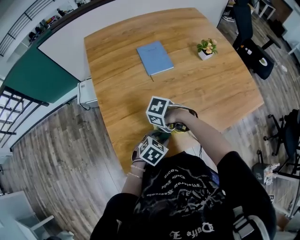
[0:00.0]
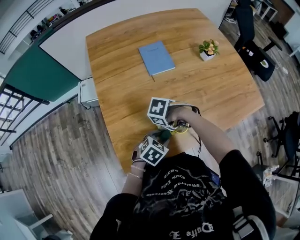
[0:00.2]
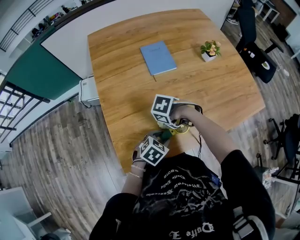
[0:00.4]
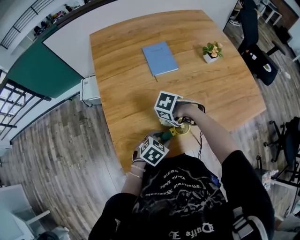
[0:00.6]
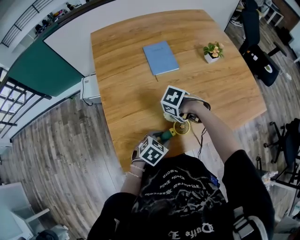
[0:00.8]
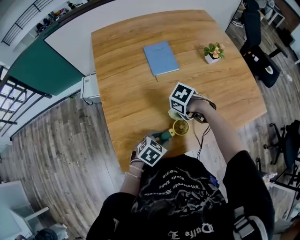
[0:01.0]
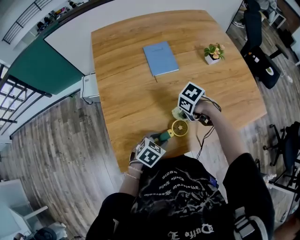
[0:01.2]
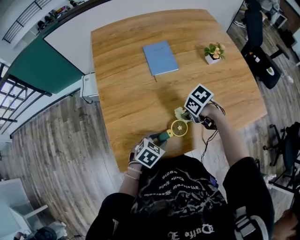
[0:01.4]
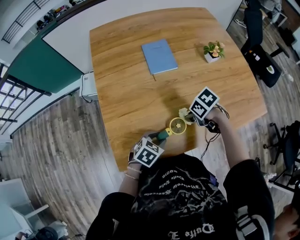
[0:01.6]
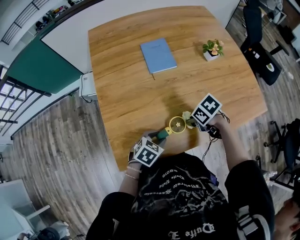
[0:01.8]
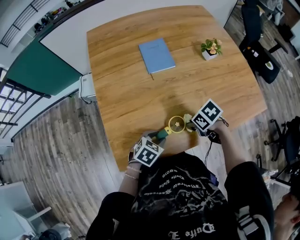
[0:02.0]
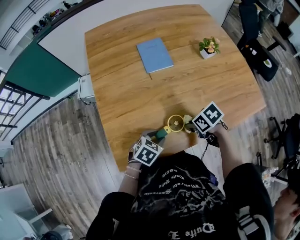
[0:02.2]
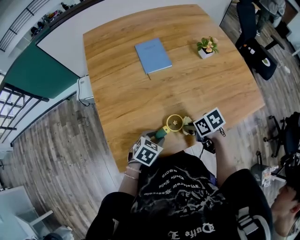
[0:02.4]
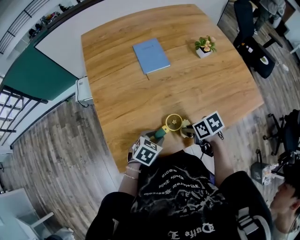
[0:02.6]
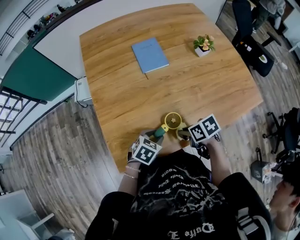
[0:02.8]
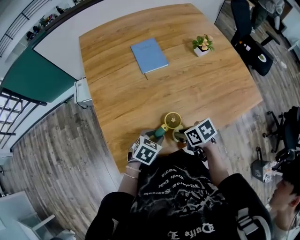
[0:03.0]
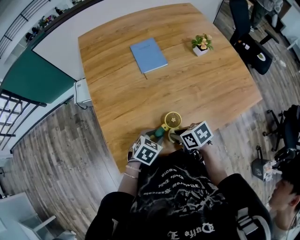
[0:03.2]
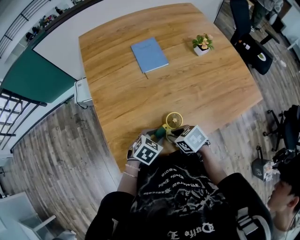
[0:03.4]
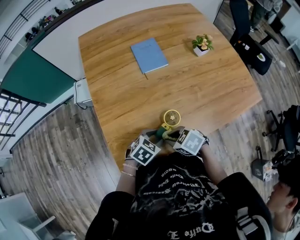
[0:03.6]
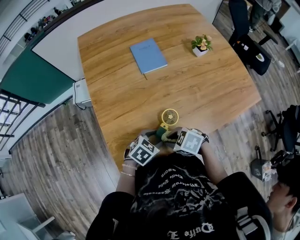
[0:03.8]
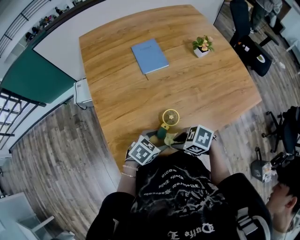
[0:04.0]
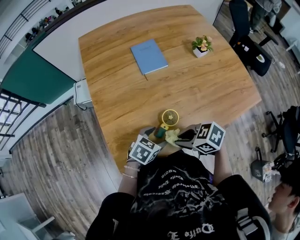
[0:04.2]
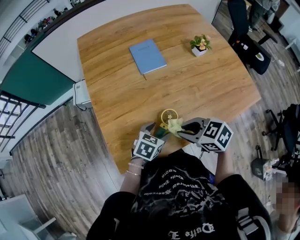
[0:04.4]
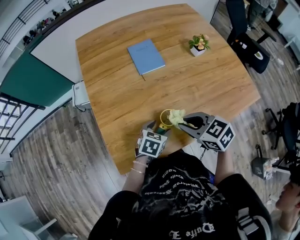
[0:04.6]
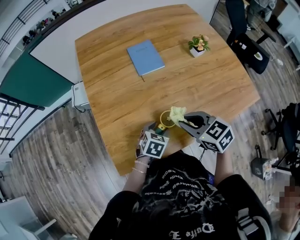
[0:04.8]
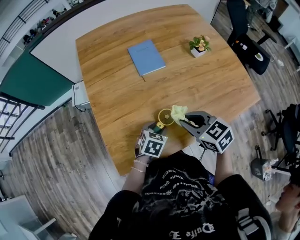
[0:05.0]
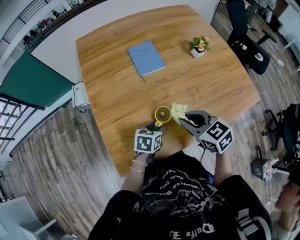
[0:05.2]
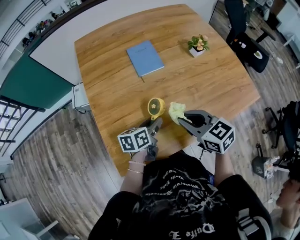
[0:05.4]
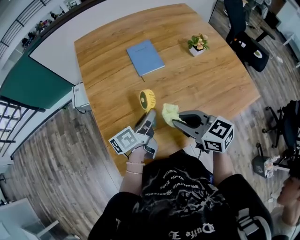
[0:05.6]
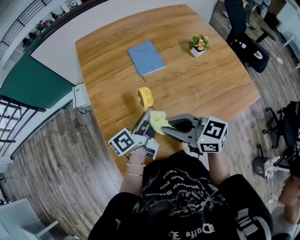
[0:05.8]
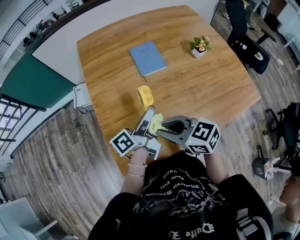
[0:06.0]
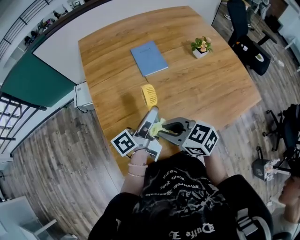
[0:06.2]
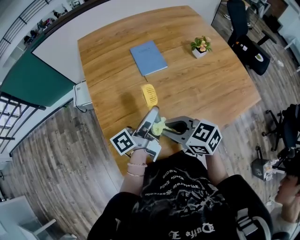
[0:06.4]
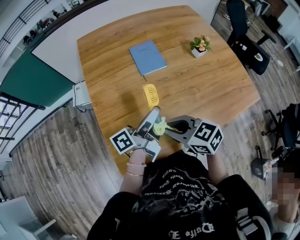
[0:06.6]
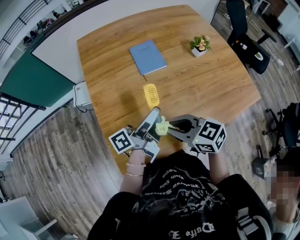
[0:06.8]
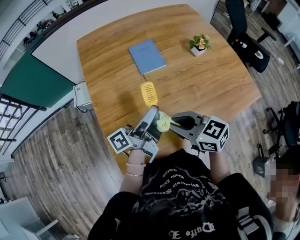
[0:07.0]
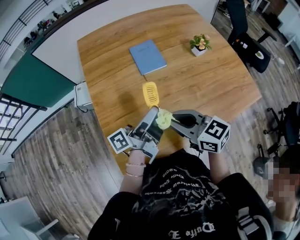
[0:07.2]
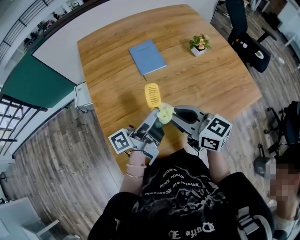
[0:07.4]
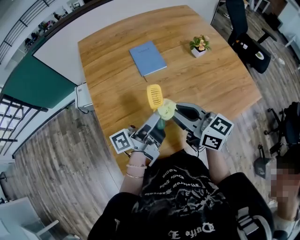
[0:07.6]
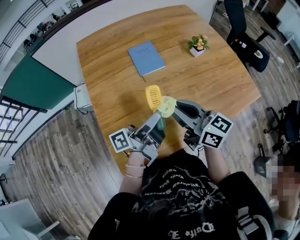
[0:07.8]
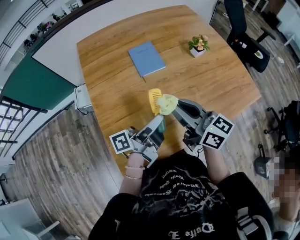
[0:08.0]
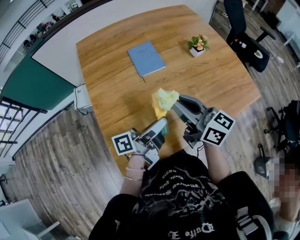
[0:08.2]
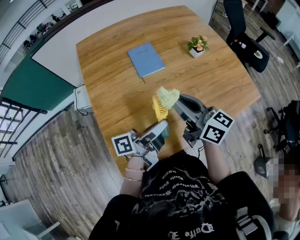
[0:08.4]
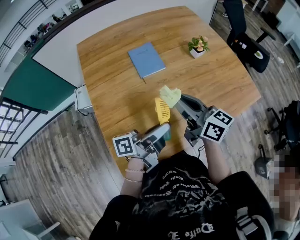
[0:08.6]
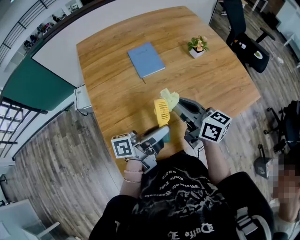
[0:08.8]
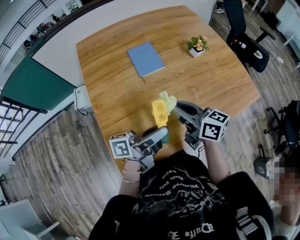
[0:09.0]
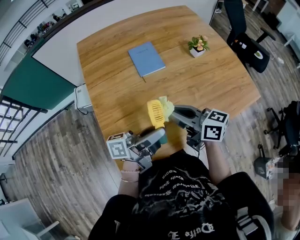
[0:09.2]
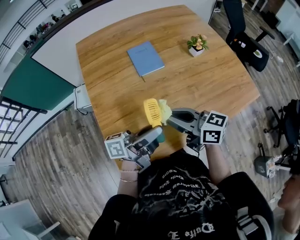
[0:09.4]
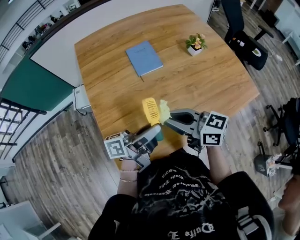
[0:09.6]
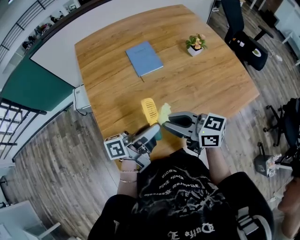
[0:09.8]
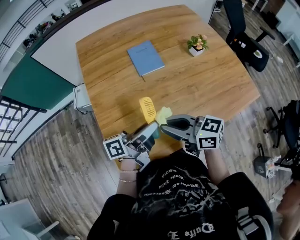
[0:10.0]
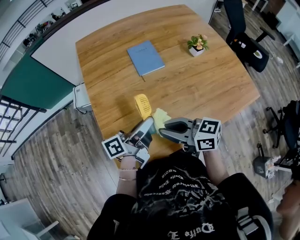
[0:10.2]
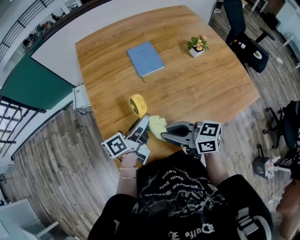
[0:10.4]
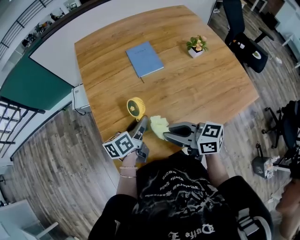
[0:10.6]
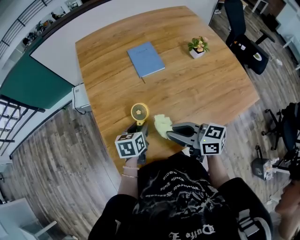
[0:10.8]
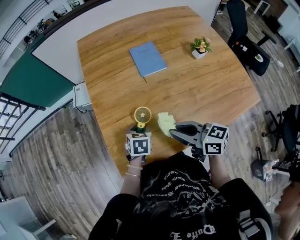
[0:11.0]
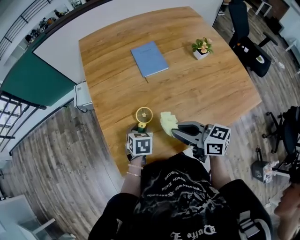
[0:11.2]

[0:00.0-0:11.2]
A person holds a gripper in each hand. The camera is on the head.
0.0 to 1.6 s: The right gripper moves some 15 cm, and rotates some 20 degrees.
1.6 to 3.2 s: The right gripper shifts by roughly 10 cm, and rotates some 20 degrees.
3.2 to 4.8 s: The right gripper travels upward by some 10 cm, and changes its angle by some 30 degrees, while the left gripper shifts by roughly 5 cm.
4.8 to 6.4 s: The right gripper moves to the left, some 10 cm. The left gripper is displaced upward by about 20 cm, and tips its fingers upward by approximately 60 degrees.
6.4 to 8.0 s: The right gripper travels upward, to the right and forward by some 10 cm, and tips its fingers upward by about 30 degrees.
8.0 to 9.6 s: The right gripper ends up about 5 cm from where it was, and turns by some 20 degrees.
9.6 to 11.2 s: The left gripper shifts about 20 cm downward, and tilts its fingers roughly 70 degrees downward.

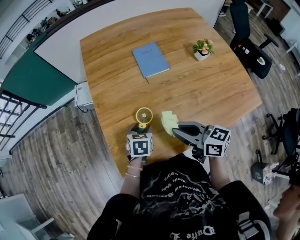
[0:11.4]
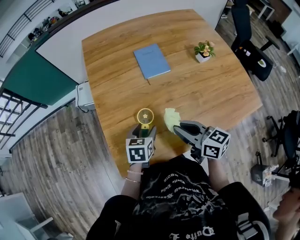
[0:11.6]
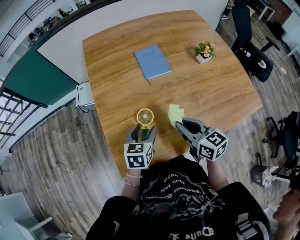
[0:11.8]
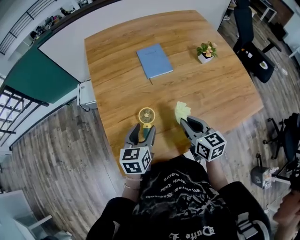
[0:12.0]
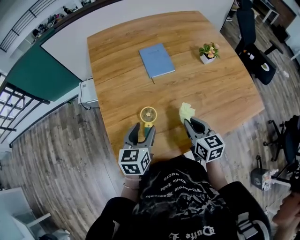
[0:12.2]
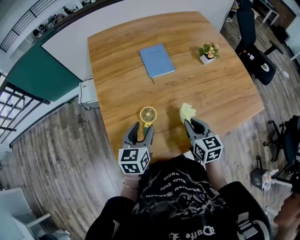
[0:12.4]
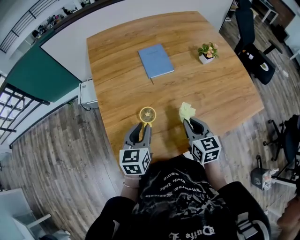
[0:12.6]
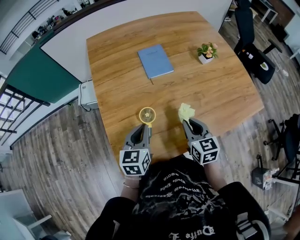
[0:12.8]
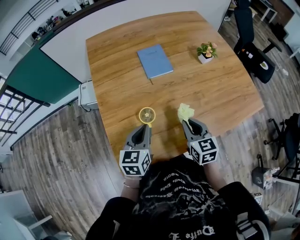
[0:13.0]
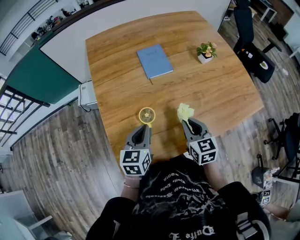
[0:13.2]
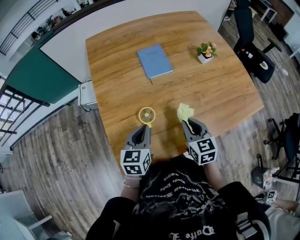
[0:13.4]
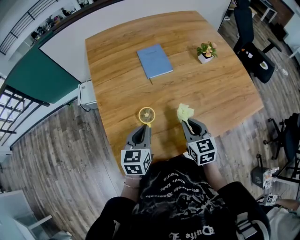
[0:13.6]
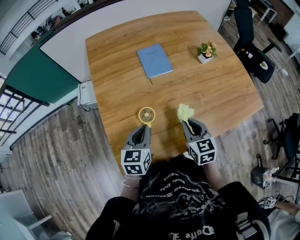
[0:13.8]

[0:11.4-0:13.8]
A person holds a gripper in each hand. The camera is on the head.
11.4 to 12.6 s: The left gripper shifts some 10 cm upward, swivels about 30 degrees, and closes its fingers. Meanwhile the right gripper travels to the right and downward by approximately 10 cm, and turns by approximately 40 degrees.
12.6 to 13.8 s: There are only small adjustments of the grippers.

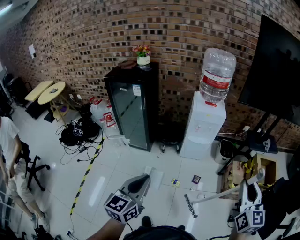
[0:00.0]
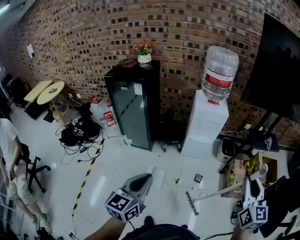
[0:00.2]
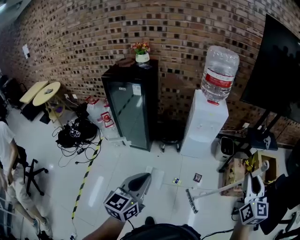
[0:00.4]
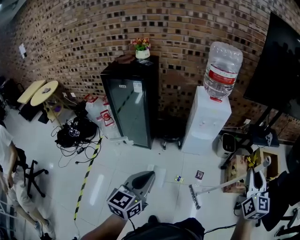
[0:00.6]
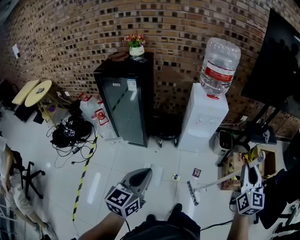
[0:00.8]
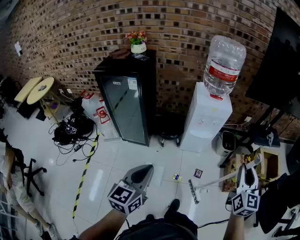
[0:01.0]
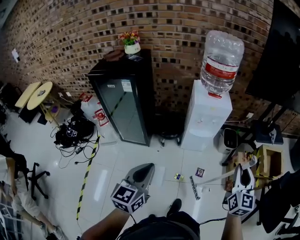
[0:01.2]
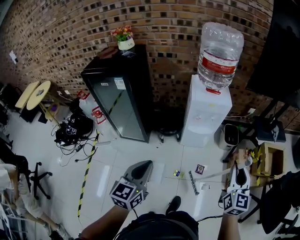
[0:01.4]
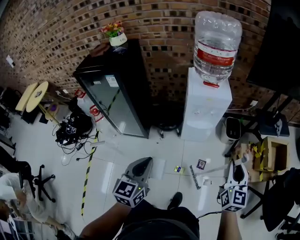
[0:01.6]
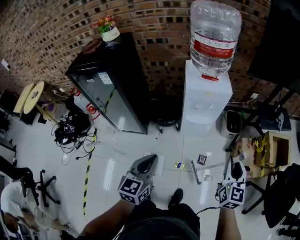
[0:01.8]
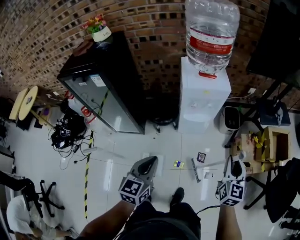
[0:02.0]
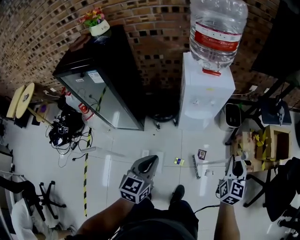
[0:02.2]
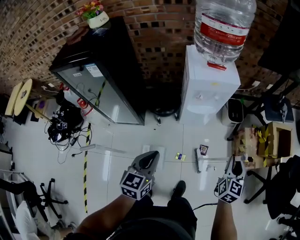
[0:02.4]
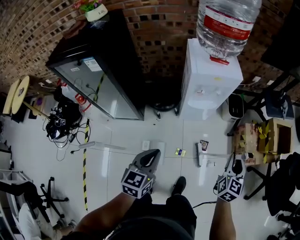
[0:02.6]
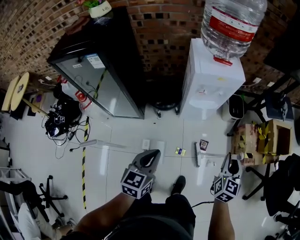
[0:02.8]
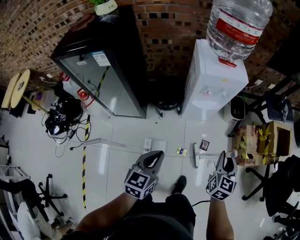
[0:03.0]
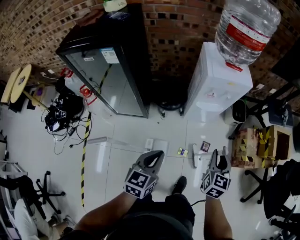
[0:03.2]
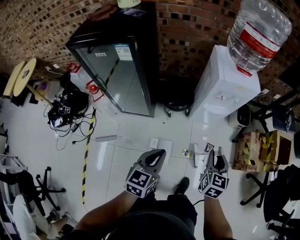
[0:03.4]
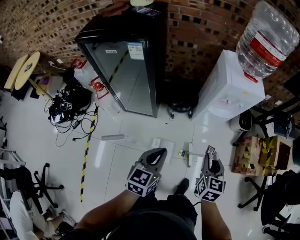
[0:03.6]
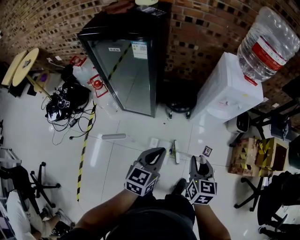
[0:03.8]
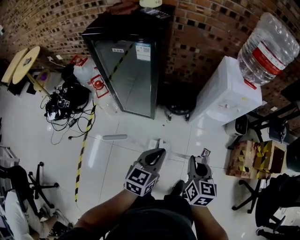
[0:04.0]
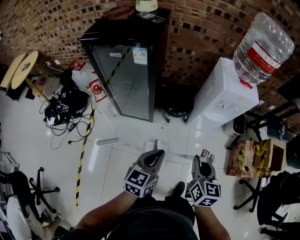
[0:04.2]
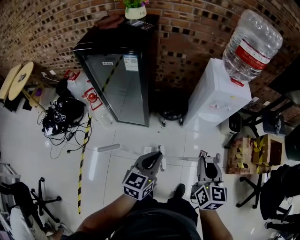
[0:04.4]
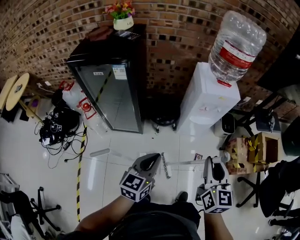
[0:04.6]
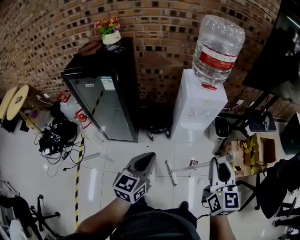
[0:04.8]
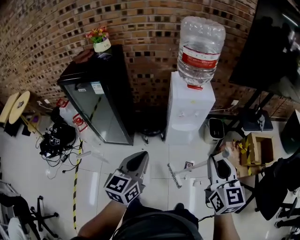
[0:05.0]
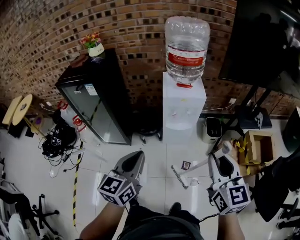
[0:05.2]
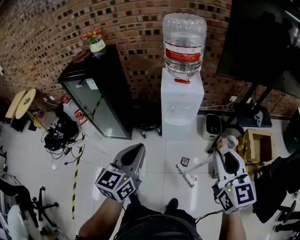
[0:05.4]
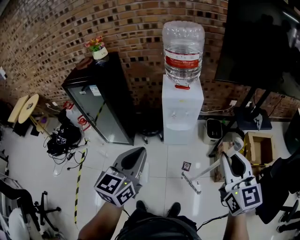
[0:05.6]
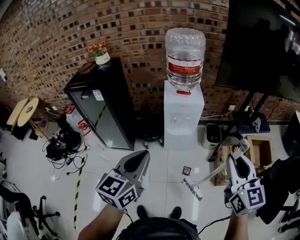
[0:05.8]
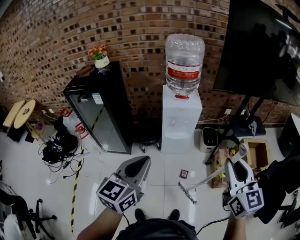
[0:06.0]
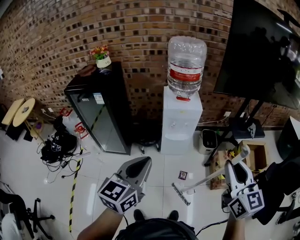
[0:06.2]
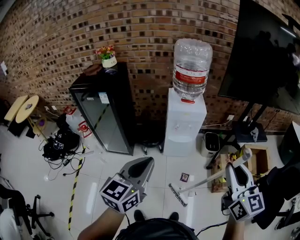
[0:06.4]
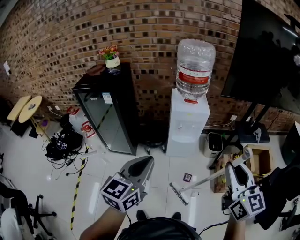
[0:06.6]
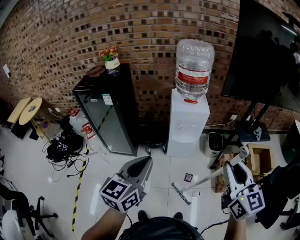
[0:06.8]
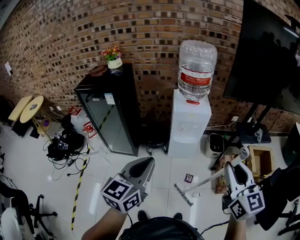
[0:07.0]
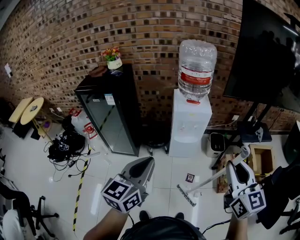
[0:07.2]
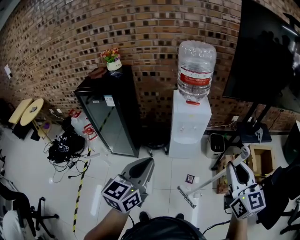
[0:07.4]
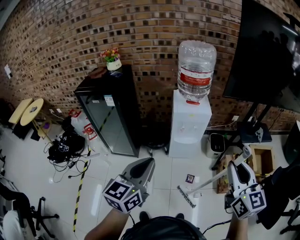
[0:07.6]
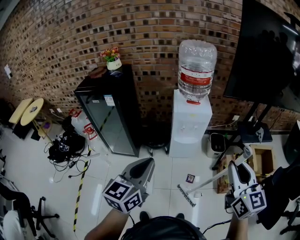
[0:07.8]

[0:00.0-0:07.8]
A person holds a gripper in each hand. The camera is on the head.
0.0 to 1.6 s: The left gripper shifts about 30 cm forward; the right gripper is displaced forward and downward by roughly 35 cm.
1.6 to 3.2 s: The right gripper travels to the left and downward by approximately 30 cm, and rotates approximately 20 degrees, while the left gripper moves downward and to the left, some 20 cm.
3.2 to 4.6 s: The right gripper is displaced upward, to the left and backward by some 25 cm. Meanwhile the left gripper is displaced upward and to the left by about 10 cm.
4.6 to 6.2 s: The left gripper shifts approximately 40 cm to the right, upward and backward; the right gripper goes approximately 40 cm to the right and upward.
6.2 to 7.8 s: The grippers move only a little.

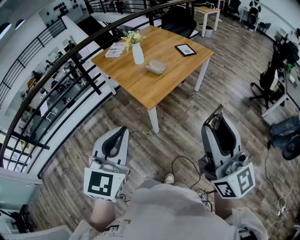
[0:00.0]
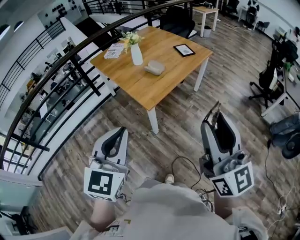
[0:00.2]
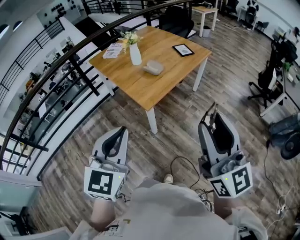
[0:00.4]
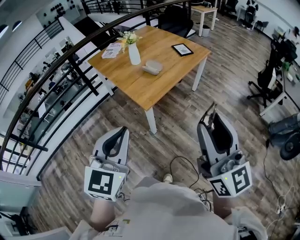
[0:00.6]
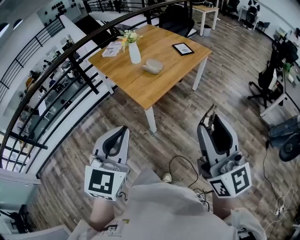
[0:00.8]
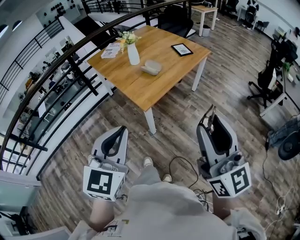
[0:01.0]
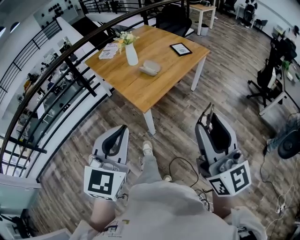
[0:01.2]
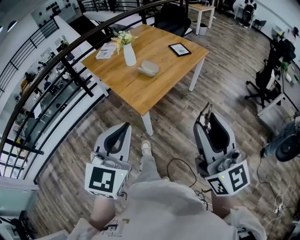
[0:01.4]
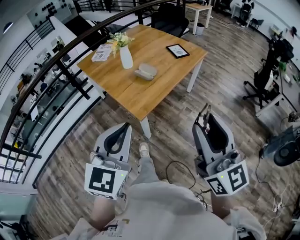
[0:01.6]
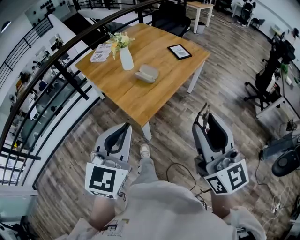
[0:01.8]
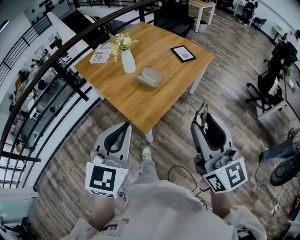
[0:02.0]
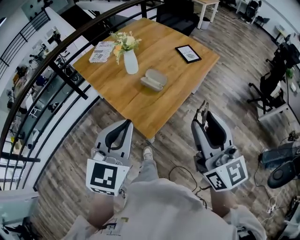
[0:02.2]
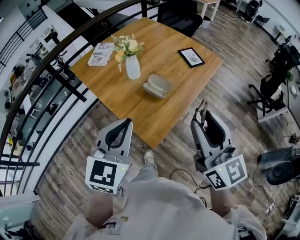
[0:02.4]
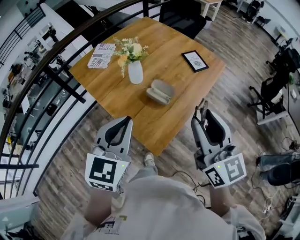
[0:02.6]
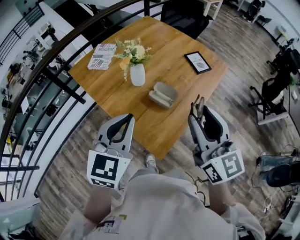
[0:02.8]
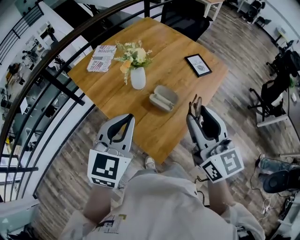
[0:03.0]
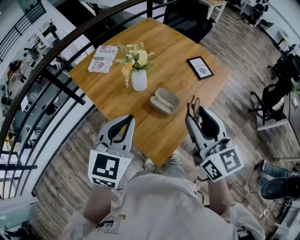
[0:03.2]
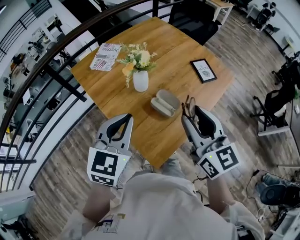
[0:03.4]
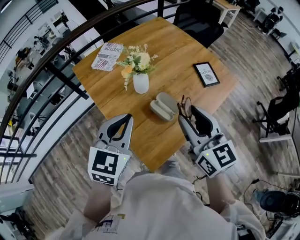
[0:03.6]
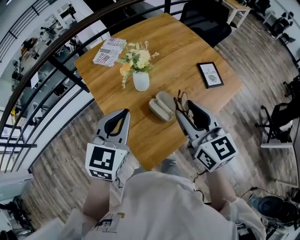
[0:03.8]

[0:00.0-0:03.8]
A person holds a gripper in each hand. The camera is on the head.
0.0 to 1.2 s: The right gripper shifts by roughly 5 cm. The left gripper moves roughly 5 cm.
1.2 to 2.6 s: The pair of grippers is taken forward, some 50 cm.
2.6 to 3.8 s: Both grippers travel together forward, roughly 15 cm. The right gripper turns by about 20 degrees.
